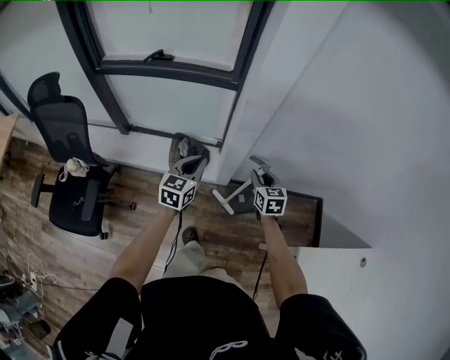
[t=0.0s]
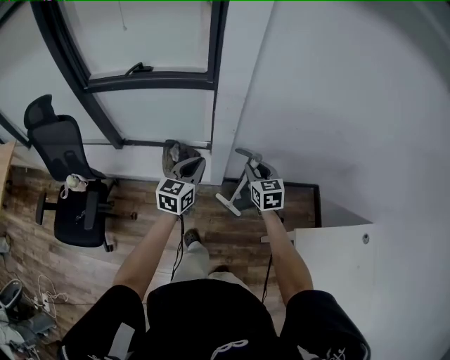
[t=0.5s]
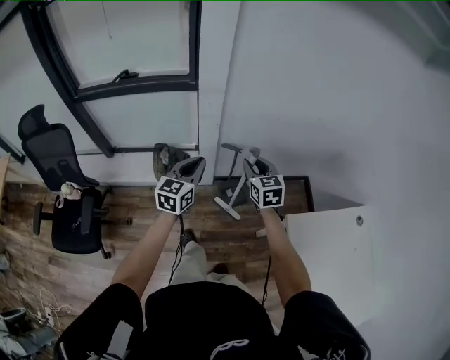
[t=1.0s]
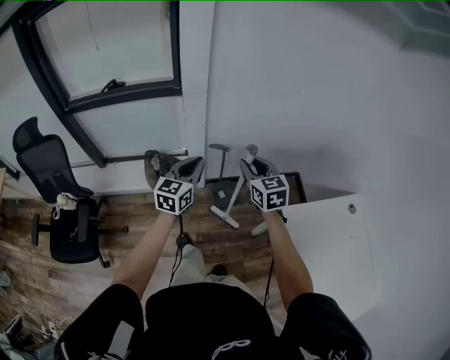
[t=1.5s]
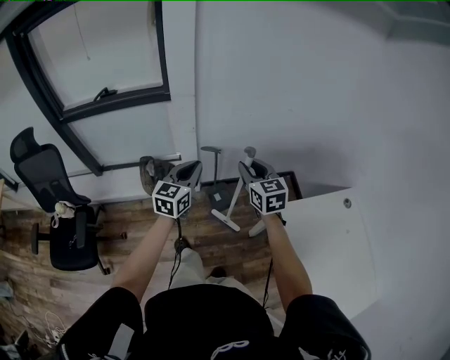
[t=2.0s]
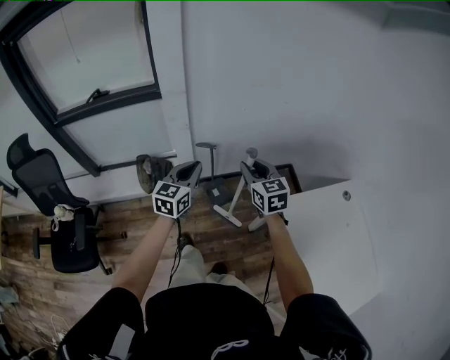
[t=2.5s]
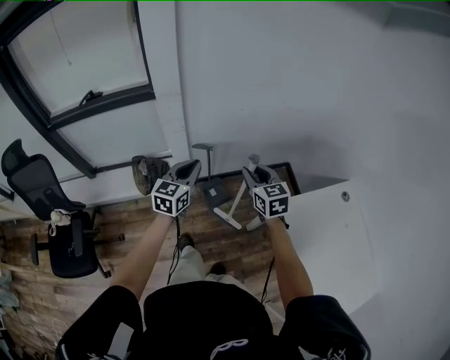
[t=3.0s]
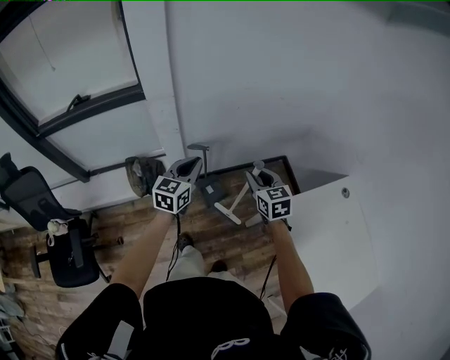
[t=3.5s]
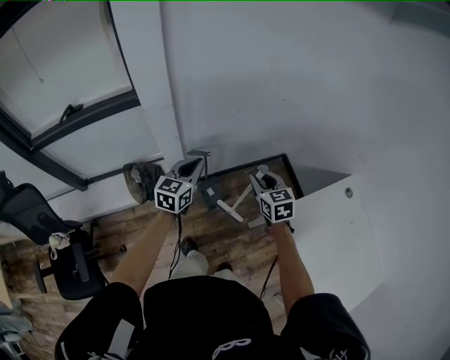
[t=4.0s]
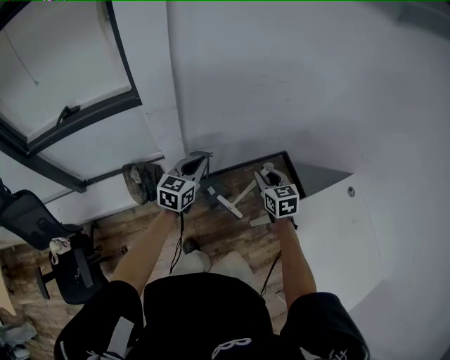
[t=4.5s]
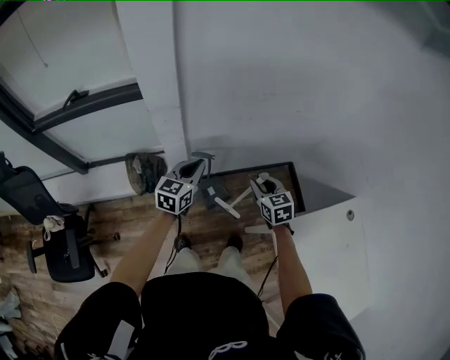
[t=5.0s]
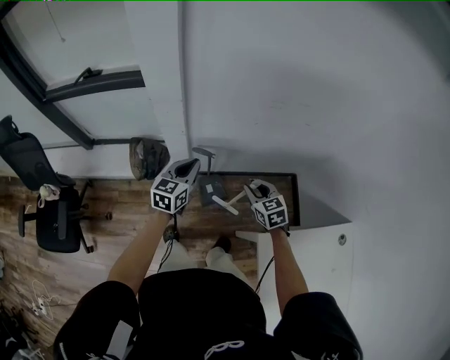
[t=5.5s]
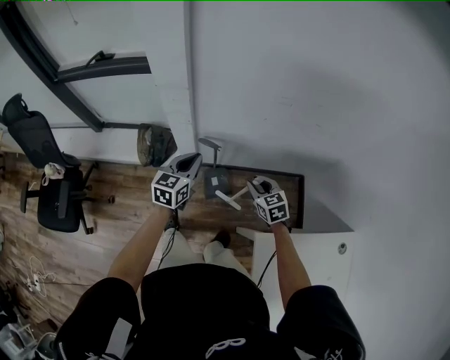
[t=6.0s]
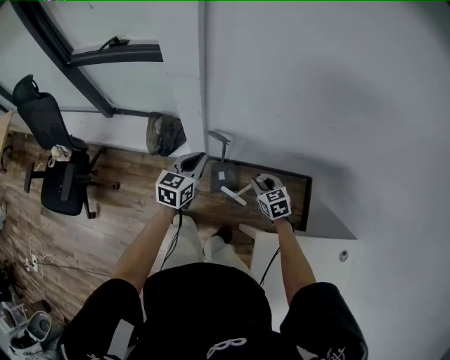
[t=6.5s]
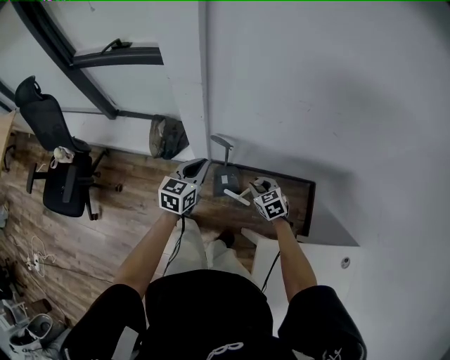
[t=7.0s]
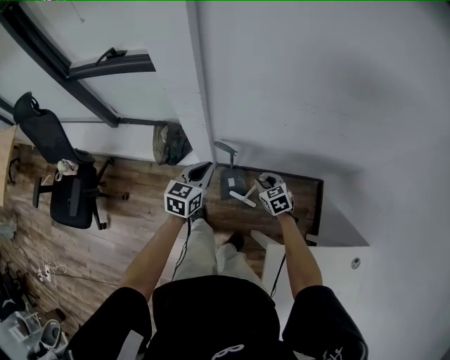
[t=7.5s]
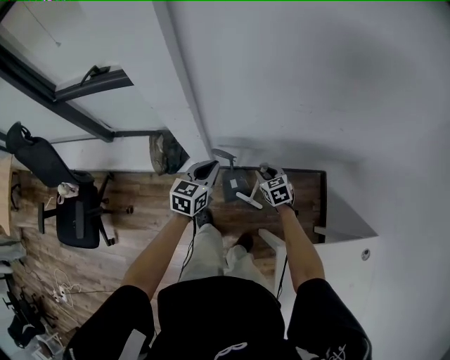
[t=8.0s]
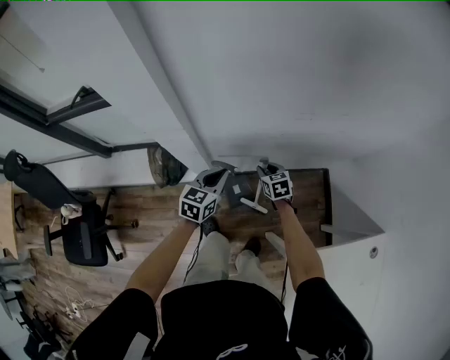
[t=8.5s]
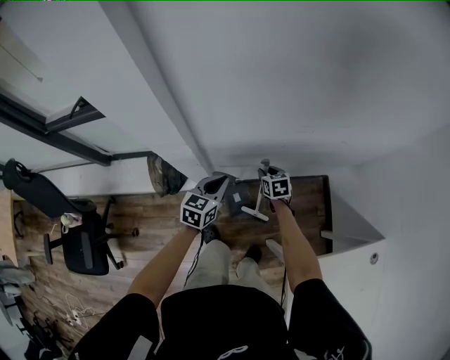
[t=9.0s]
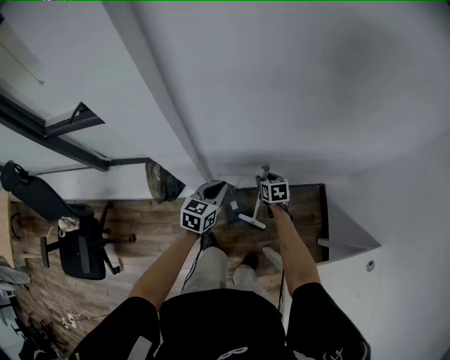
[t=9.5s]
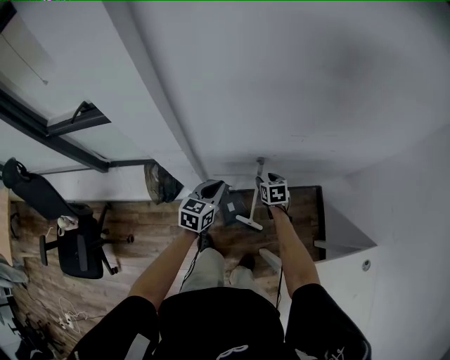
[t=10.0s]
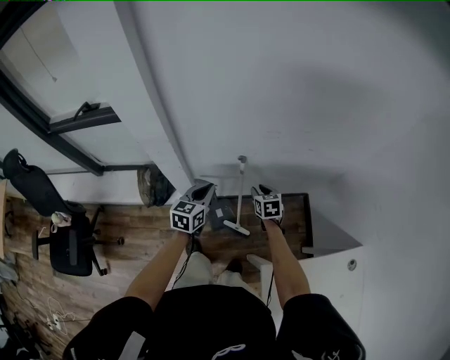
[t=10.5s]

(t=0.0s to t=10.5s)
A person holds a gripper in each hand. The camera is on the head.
t=0.0s - t=2.0s: The left gripper shifts some 30 cm to the right, backward and upward, while the right gripper travels backward, upward and to the right by roughly 30 cm.
t=2.0s - t=4.0s: The right gripper is displaced downward, forward and to the right by about 15 cm. The left gripper goes some 15 cm forward and downward.
t=4.0s - t=6.5s: The right gripper is displaced downward by about 15 cm, and rotates about 40 degrees, while the left gripper goes about 5 cm downward, and swivels about 30 degrees.
t=6.5s - t=8.5s: Both grippers travel together forward and downward, approximately 15 cm. The right gripper changes its angle by roughly 20 degrees.
t=8.5s - t=10.5s: The left gripper changes place by about 5 cm; the right gripper shifts some 10 cm to the right and upward.

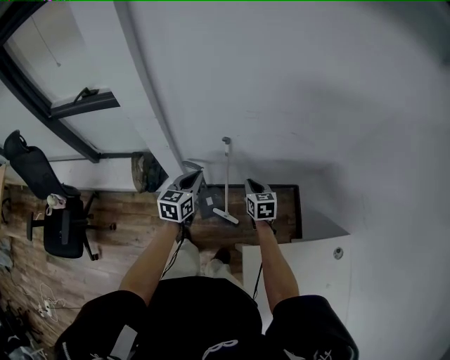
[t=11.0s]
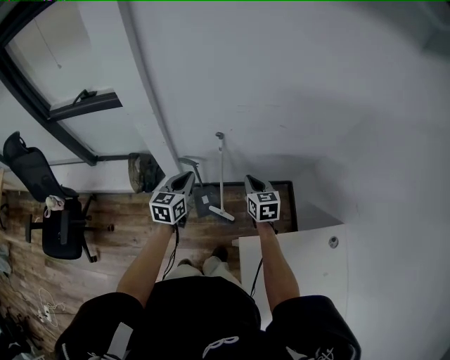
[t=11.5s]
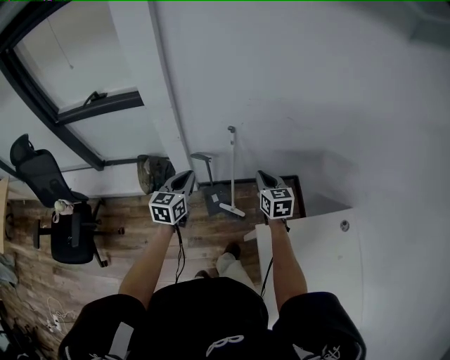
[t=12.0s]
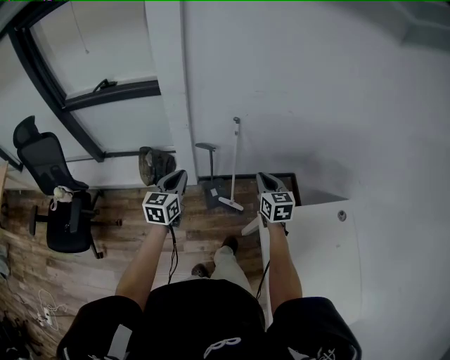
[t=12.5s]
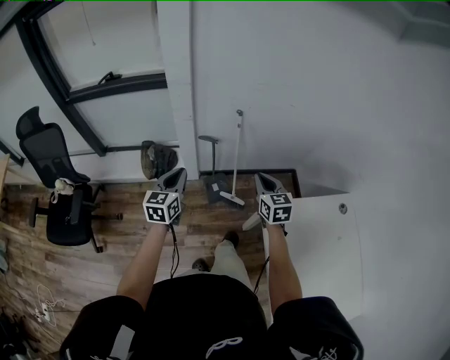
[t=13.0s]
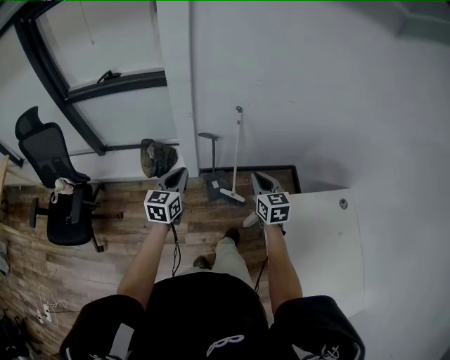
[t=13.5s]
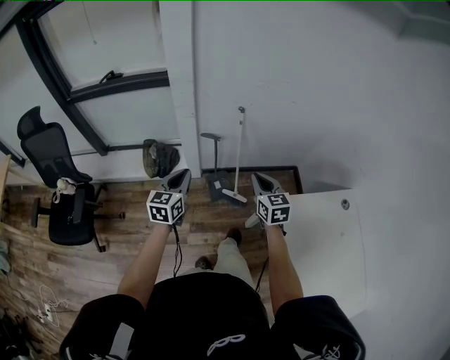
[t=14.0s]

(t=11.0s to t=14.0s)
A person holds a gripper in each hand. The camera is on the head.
t=11.0s - t=12.5s: The left gripper shifts about 25 cm backward and to the left. Meanwhile the right gripper shifts about 25 cm backward and upward.
t=12.5s - t=14.0s: Both grippers travel together backward, roughly 5 cm.

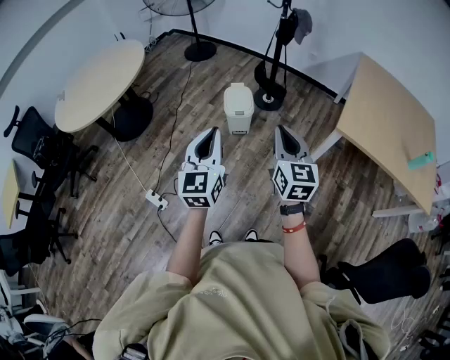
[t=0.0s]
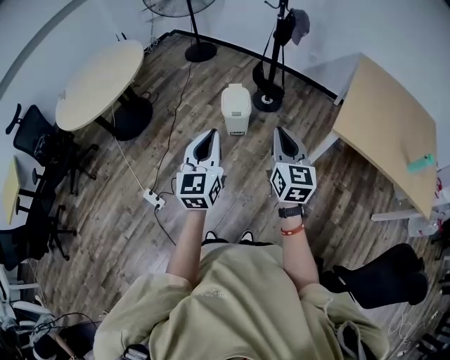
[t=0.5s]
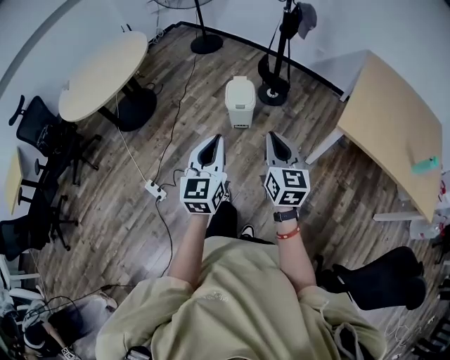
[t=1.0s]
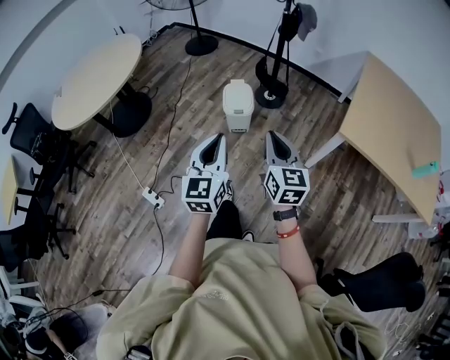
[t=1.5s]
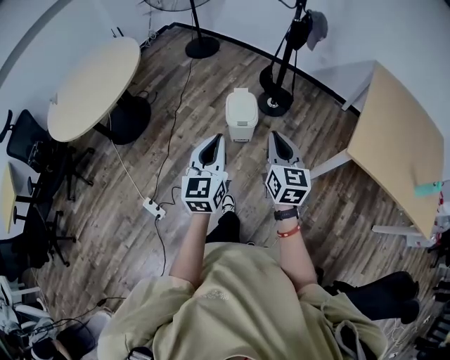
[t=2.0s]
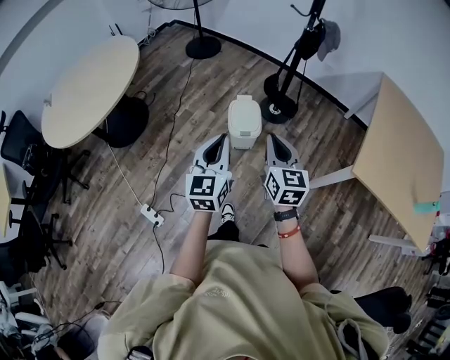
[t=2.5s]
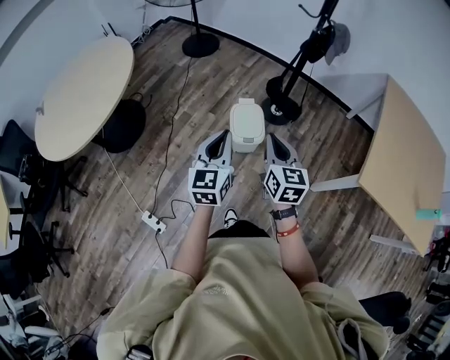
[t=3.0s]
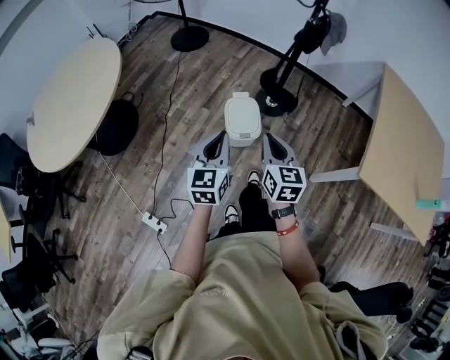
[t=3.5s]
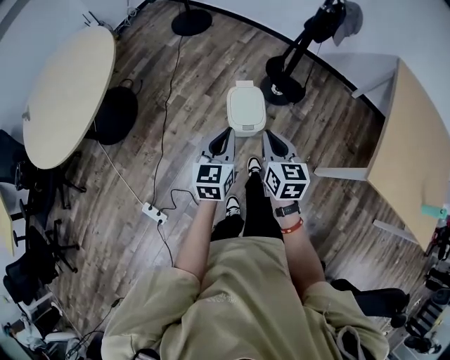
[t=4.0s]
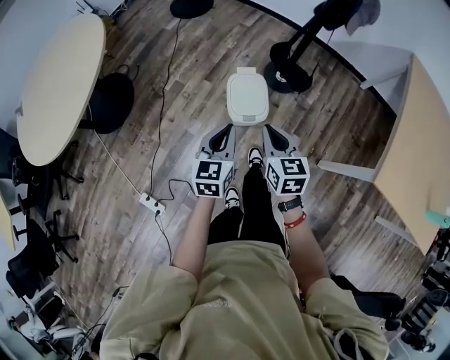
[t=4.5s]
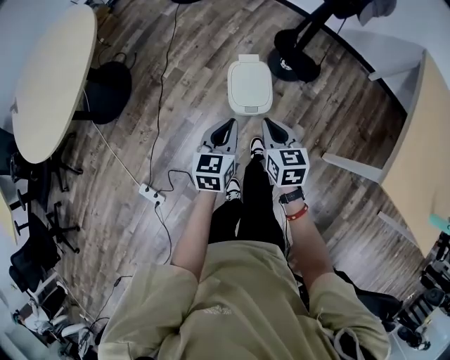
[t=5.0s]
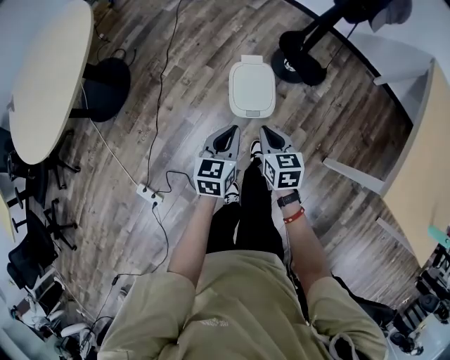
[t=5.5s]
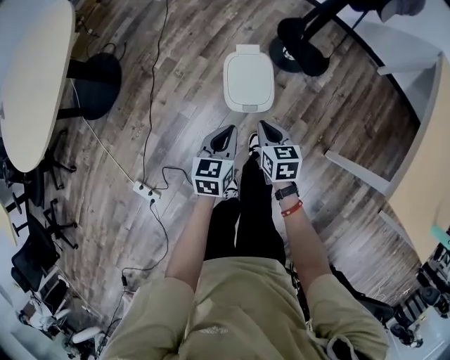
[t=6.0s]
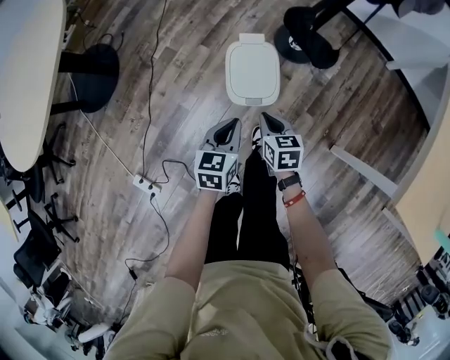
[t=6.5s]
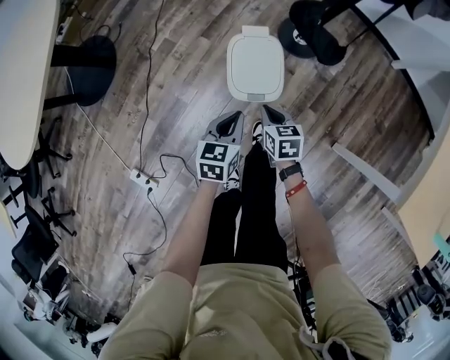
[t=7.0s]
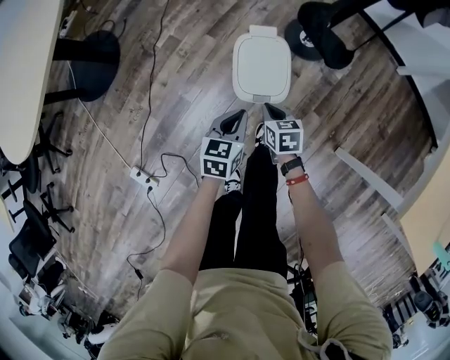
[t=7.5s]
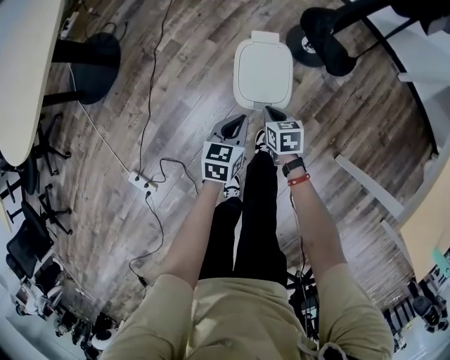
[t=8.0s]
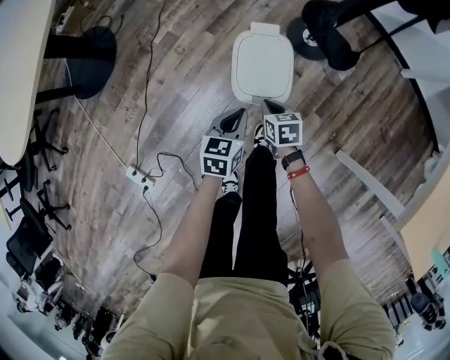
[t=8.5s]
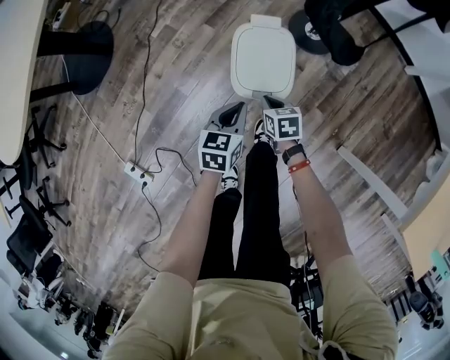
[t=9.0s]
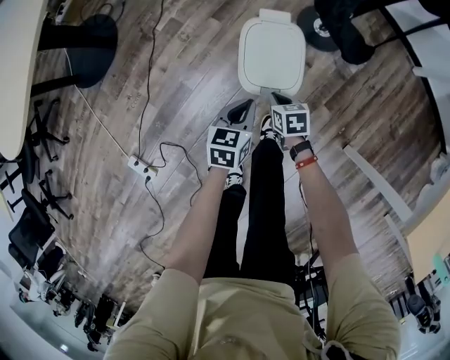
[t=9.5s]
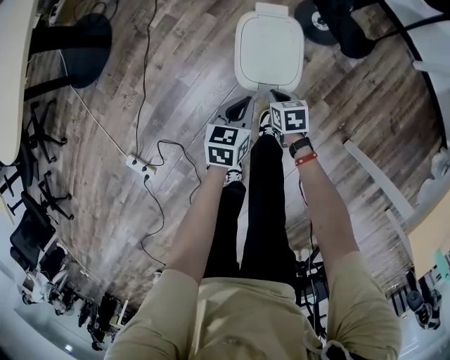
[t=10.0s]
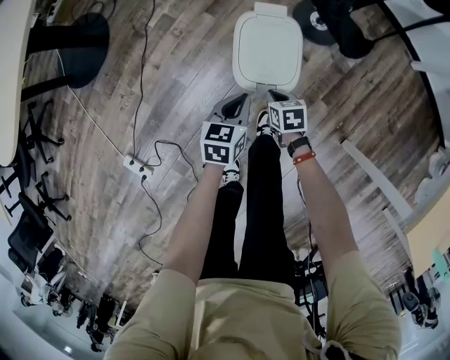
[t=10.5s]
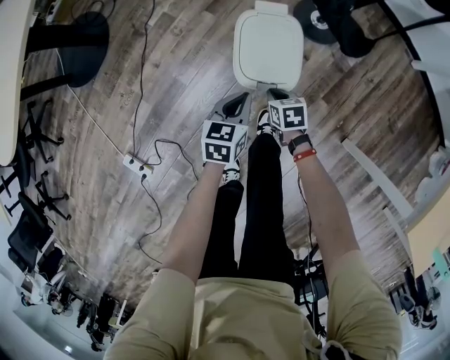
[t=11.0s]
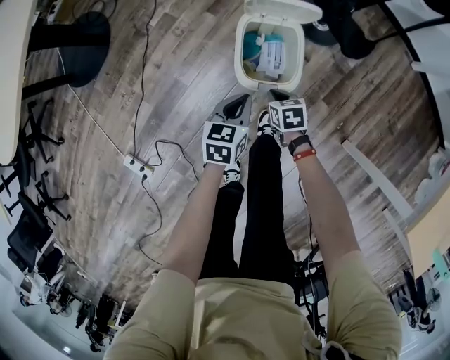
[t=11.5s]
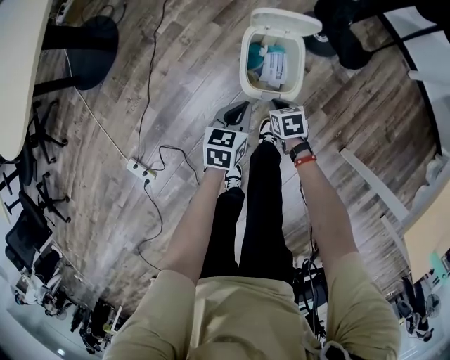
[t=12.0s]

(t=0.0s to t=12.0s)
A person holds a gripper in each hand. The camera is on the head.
t=0.0s - t=2.0s: Both grippers move forward, roughly 20 cm.
t=2.0s - t=4.0s: The two grippers go roughly 35 cm forward and downward.
t=4.0s - t=6.0s: Both grippers move downward, approximately 30 cm. The right gripper turns by some 20 degrees.
t=6.0s - t=8.0s: The two grippers go about 15 cm downward.
t=8.0s - t=10.0s: Both grippers move downward, approximately 10 cm.
t=10.0s - t=12.0s: There are only small adjustments of the grippers.

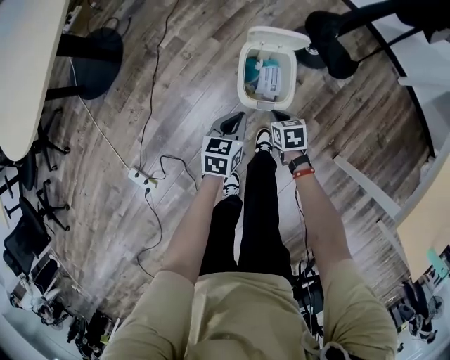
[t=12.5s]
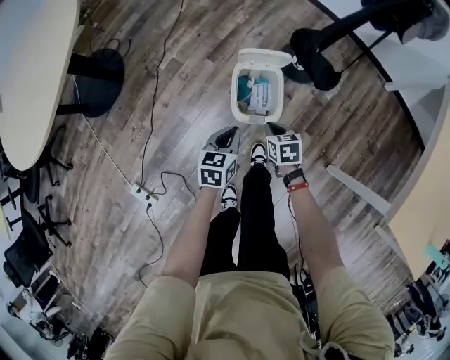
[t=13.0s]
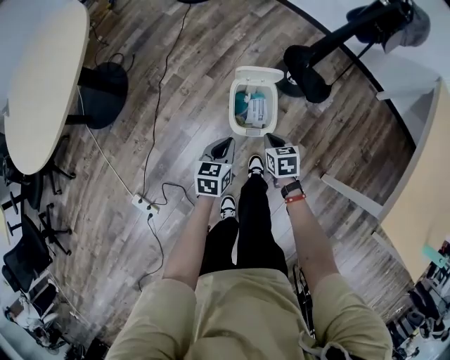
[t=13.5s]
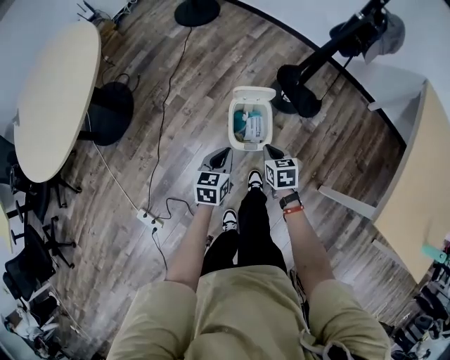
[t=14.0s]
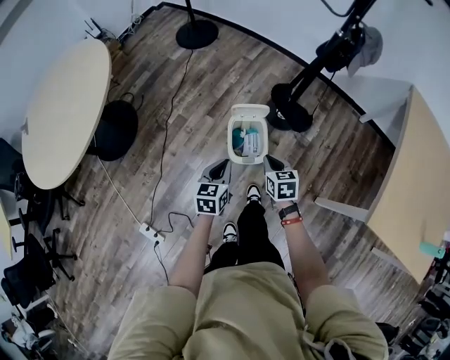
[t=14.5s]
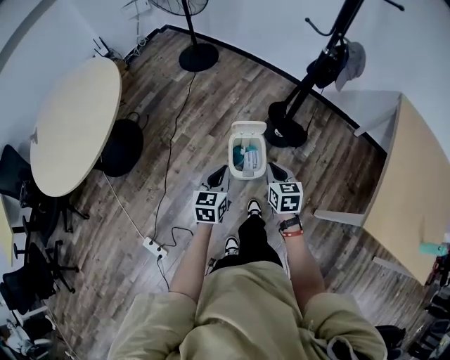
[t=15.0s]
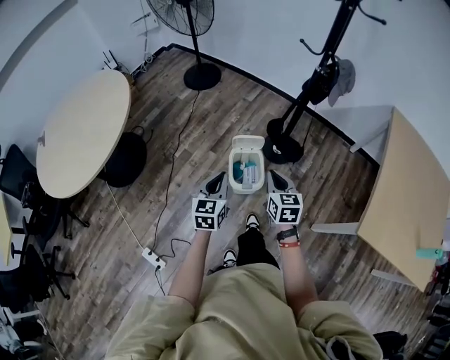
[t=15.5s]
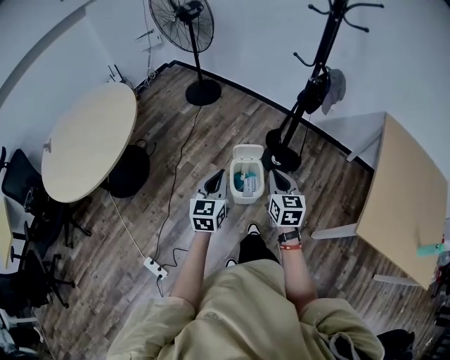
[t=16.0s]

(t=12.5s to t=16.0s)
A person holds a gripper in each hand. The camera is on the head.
t=12.5s - t=14.5s: Both grippers travel together upward, roughly 30 cm. The right gripper changes its angle by about 20 degrees.
t=14.5s - t=16.0s: The left gripper moves upward, roughly 25 cm, and turns by roughly 20 degrees. The right gripper shifts roughly 30 cm upward and backward, and changes its angle by approximately 30 degrees.
